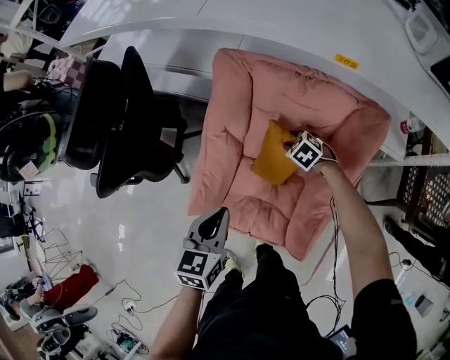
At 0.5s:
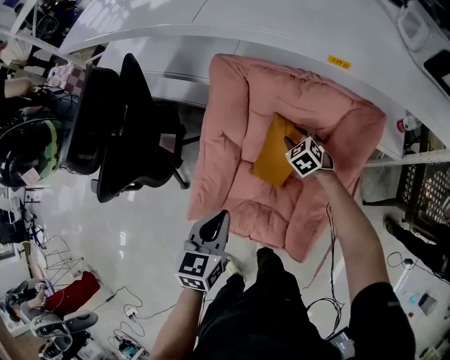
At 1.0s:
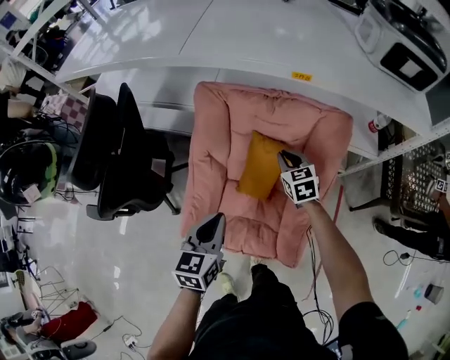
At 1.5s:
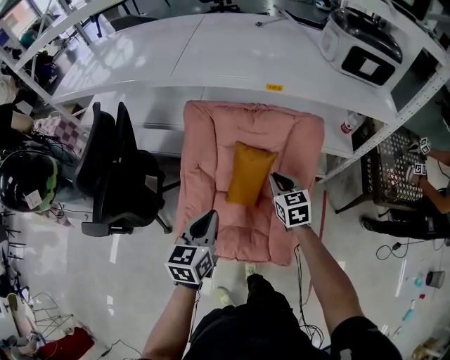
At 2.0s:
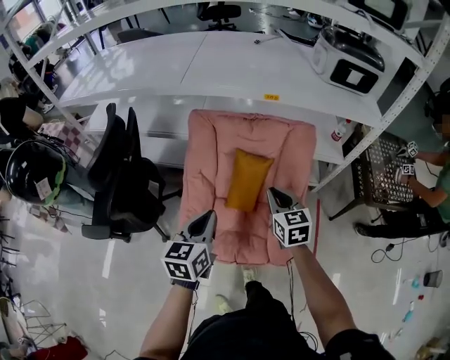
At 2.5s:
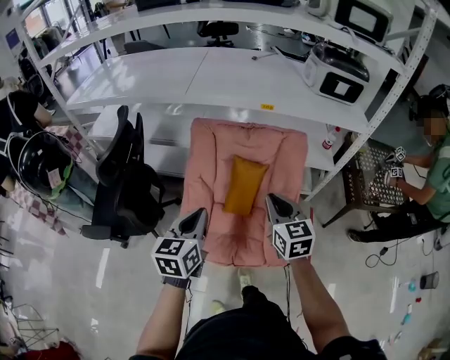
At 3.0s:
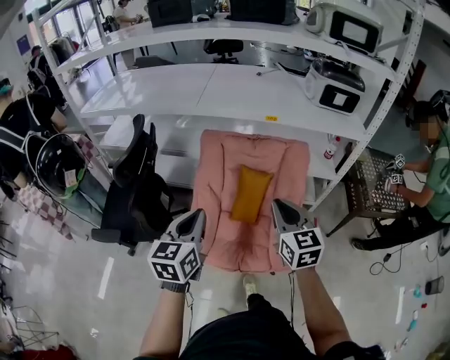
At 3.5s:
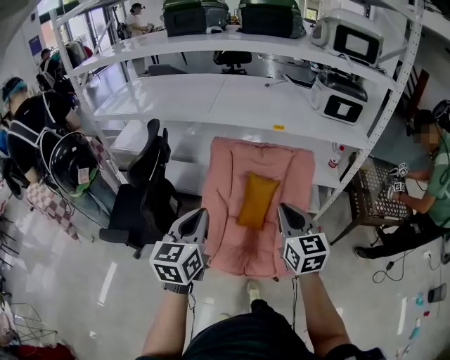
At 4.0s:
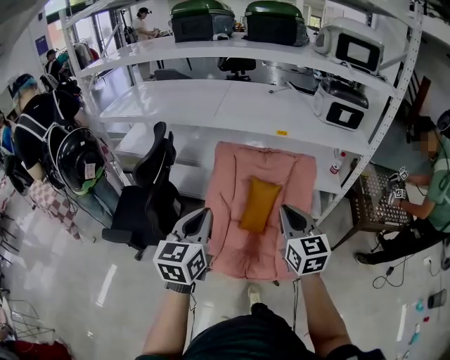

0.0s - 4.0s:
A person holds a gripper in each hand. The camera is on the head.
0.0s - 2.0s: The left gripper goes some 10 cm upward. The right gripper is displaced upward by about 30 cm, tilts its fingers some 40 degrees upward, and closes its fingers.
2.0s - 4.0s: The right gripper moves upward and backward, about 25 cm. The left gripper shifts approximately 25 cm upward, backward and to the left.

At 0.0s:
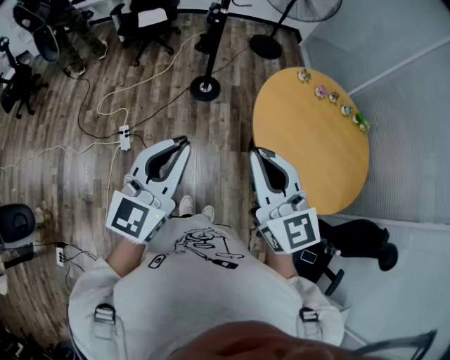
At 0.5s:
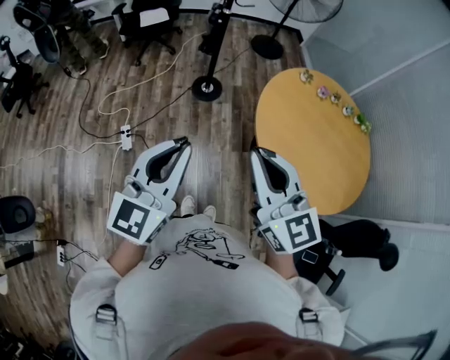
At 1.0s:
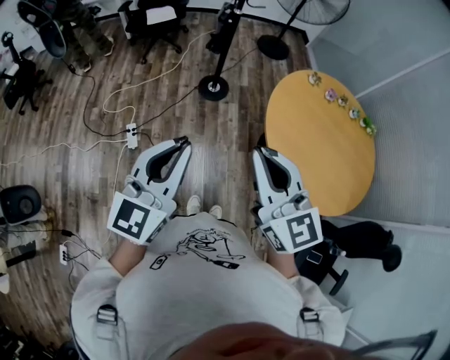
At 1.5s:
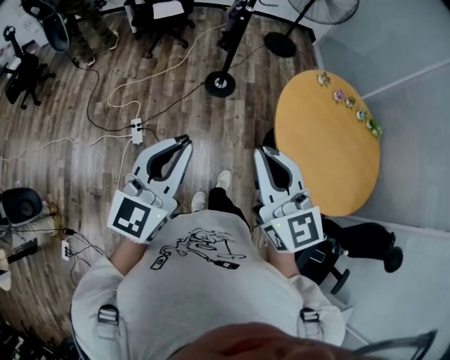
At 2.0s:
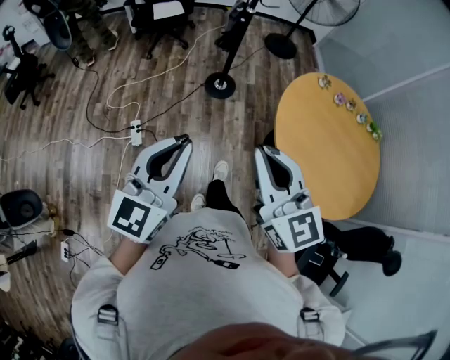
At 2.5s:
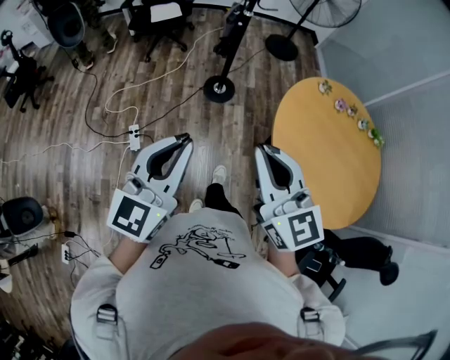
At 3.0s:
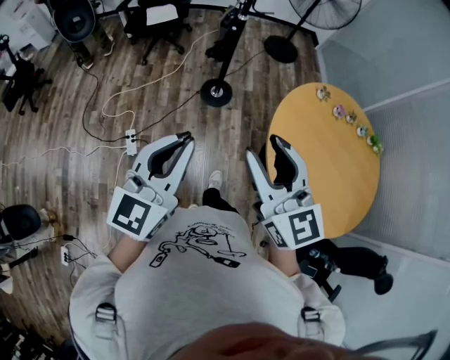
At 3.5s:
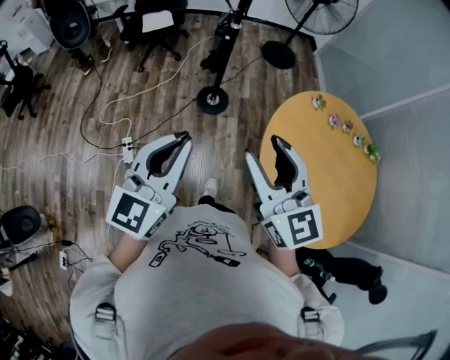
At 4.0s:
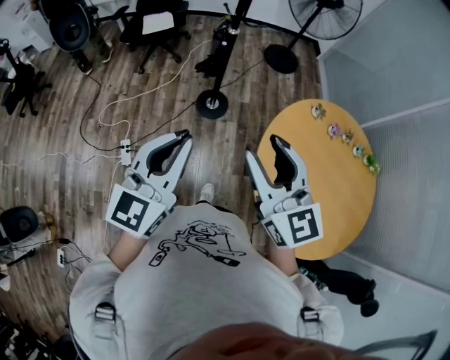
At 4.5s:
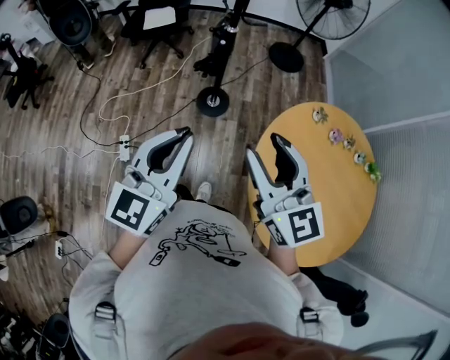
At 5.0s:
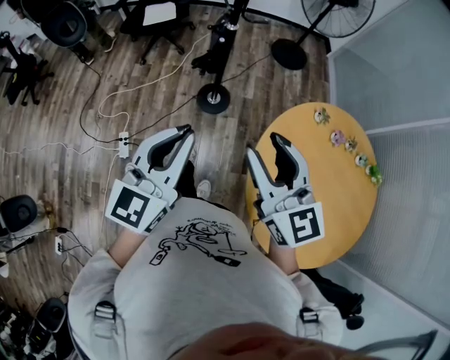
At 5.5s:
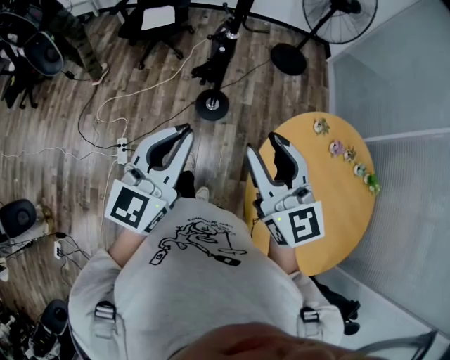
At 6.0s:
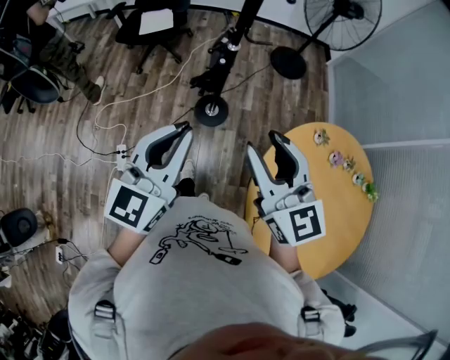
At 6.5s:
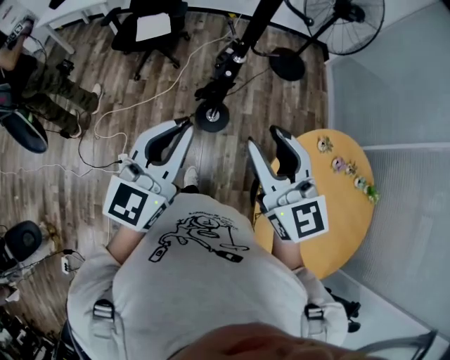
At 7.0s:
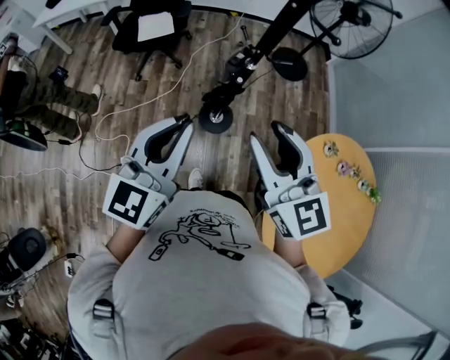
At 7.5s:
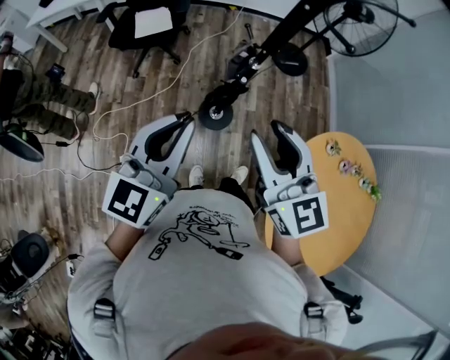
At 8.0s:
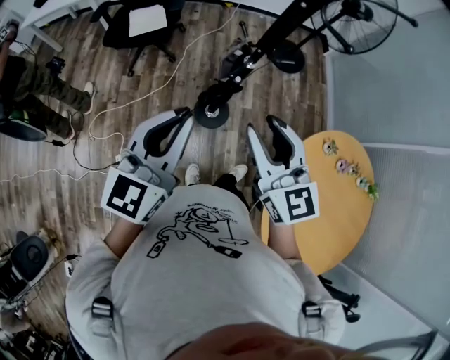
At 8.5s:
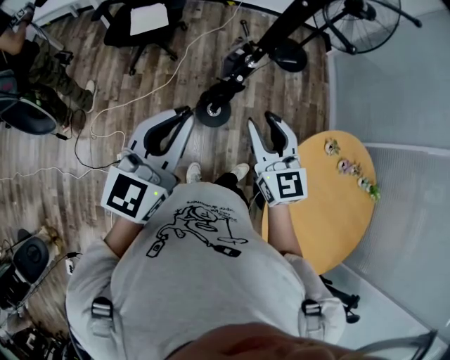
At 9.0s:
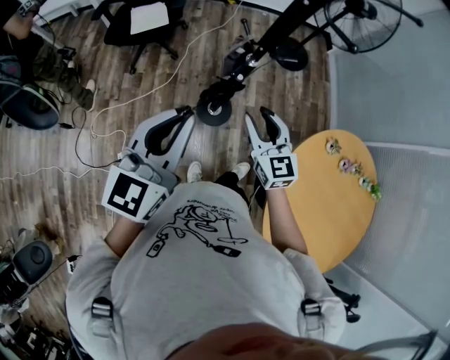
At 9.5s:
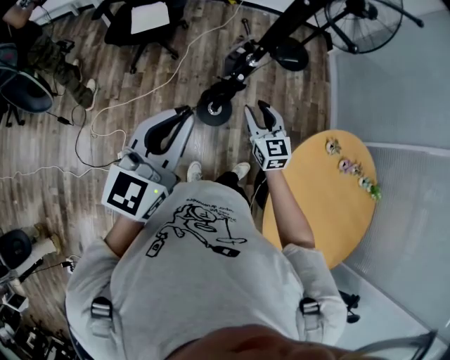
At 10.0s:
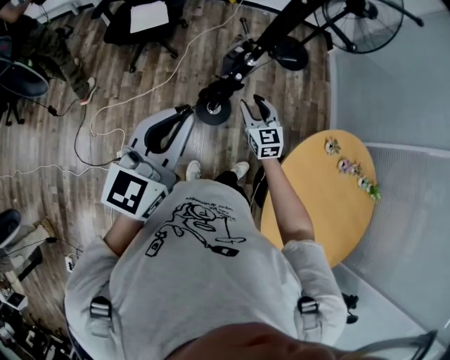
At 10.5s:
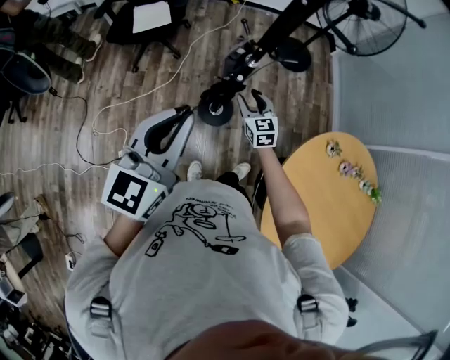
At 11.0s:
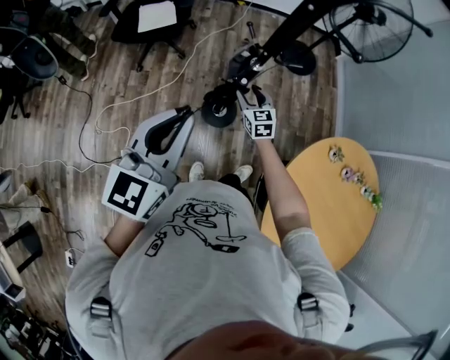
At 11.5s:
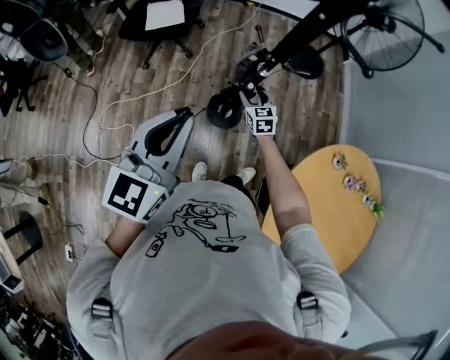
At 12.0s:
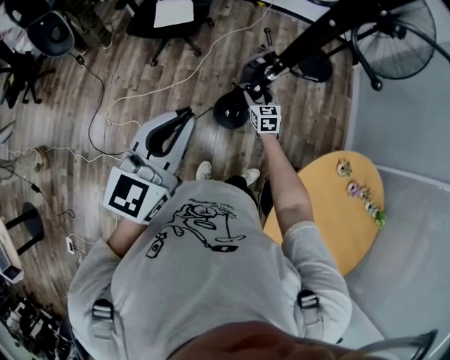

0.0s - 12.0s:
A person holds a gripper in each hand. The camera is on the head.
0.0s - 2.0s: Both grippers travel together to the left, roughly 10 cm.
2.0s - 4.0s: The grippers both shift forward and to the right by some 25 cm. The right gripper opens.
4.0s - 6.0s: Both grippers move forward, about 20 cm.
6.0s - 8.0s: Both grippers move forward and to the left, some 20 cm.
8.0s - 10.0s: The right gripper goes approximately 30 cm downward and forward.
10.0s - 12.0s: The right gripper travels downward and forward by roughly 15 cm.

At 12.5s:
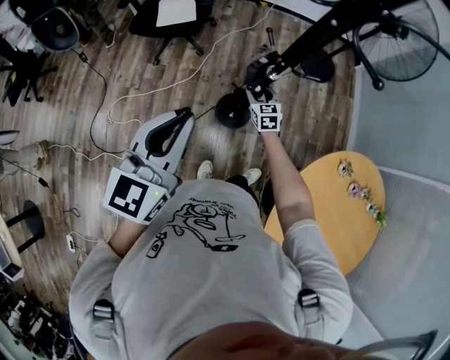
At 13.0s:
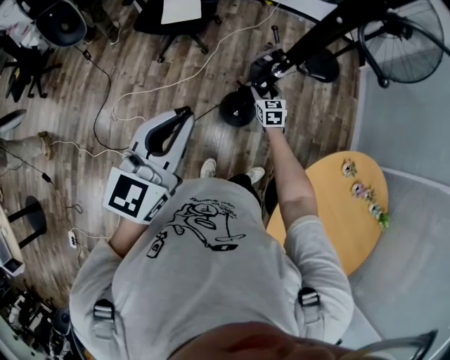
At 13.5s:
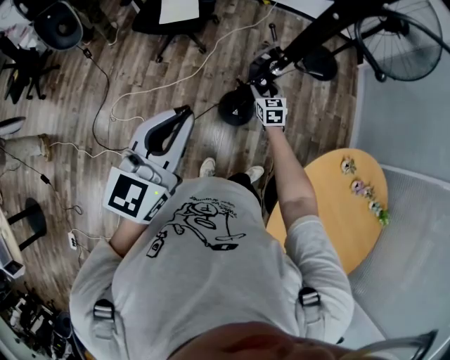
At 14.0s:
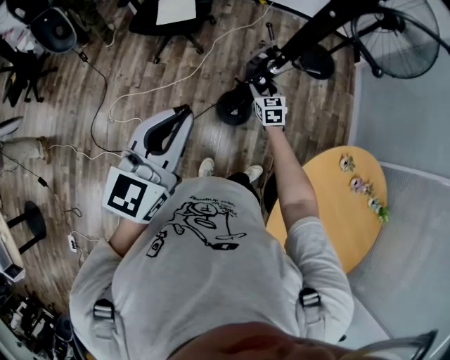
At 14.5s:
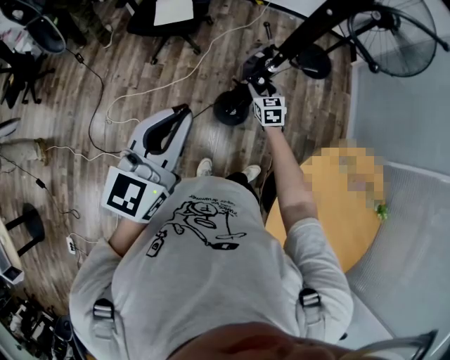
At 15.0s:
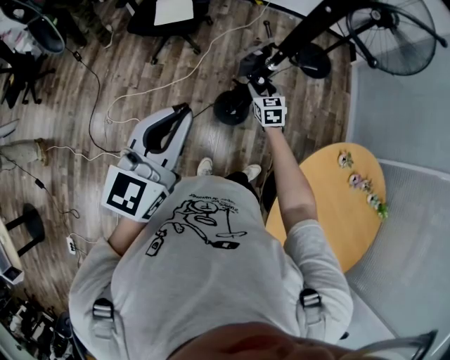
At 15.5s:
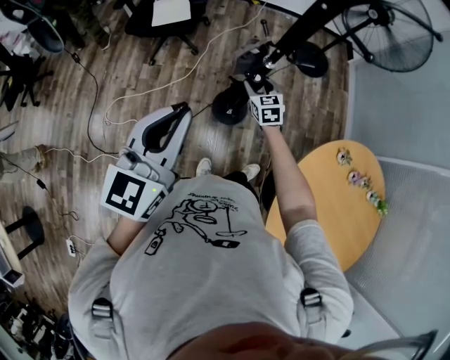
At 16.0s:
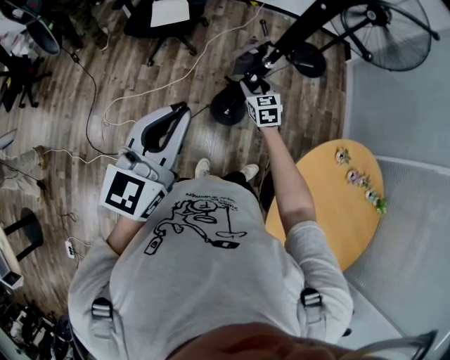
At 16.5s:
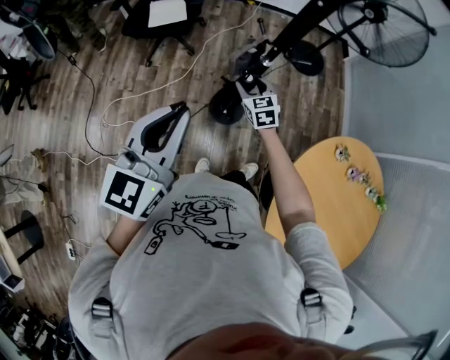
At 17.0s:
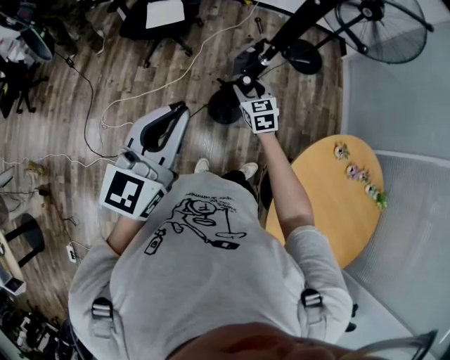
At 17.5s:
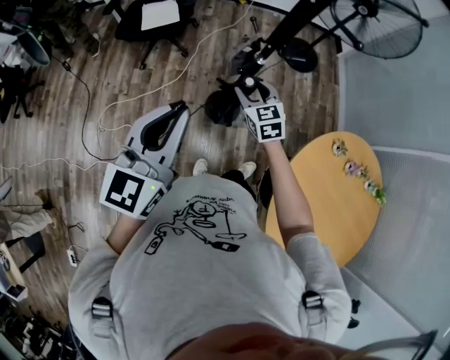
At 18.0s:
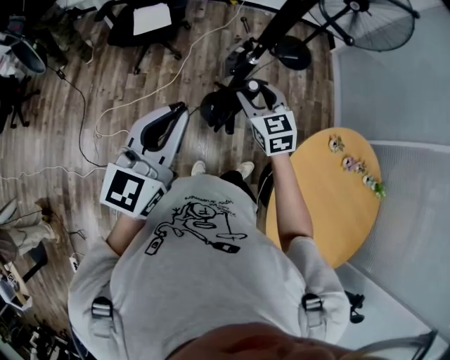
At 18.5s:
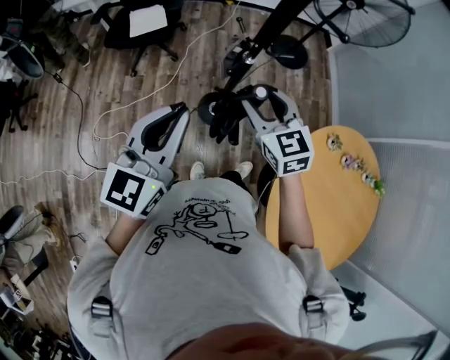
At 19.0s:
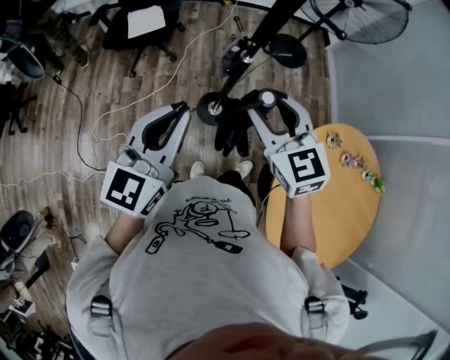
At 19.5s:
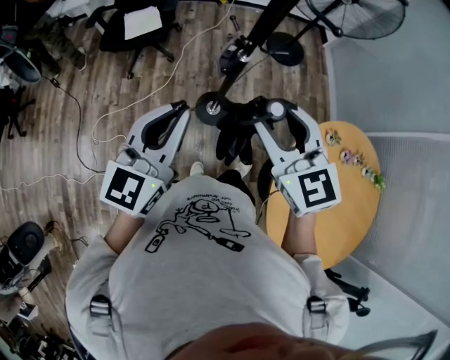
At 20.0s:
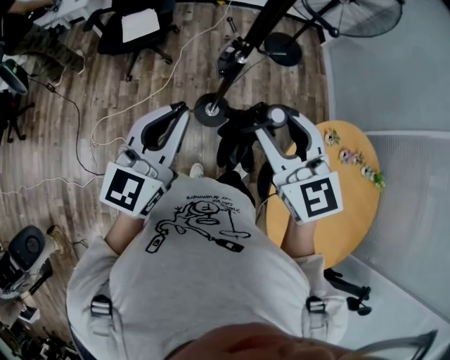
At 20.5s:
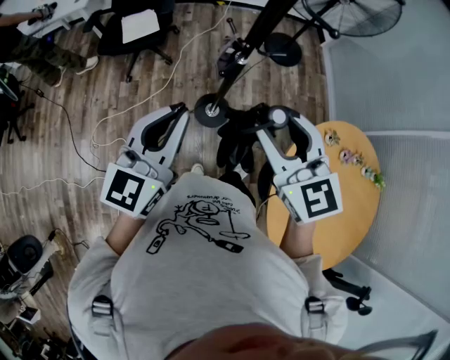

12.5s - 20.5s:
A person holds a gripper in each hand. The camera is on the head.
12.5s - 14.5s: There are only small adjustments of the grippers.
14.5s - 16.5s: The right gripper goes about 5 cm upward.
16.5s - 18.5s: The right gripper is displaced upward and backward by some 25 cm.
18.5s - 20.5s: The right gripper heads upward and backward, covering some 15 cm.

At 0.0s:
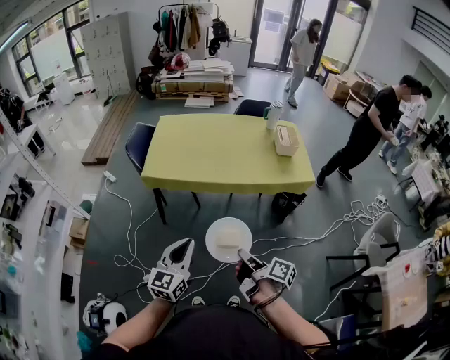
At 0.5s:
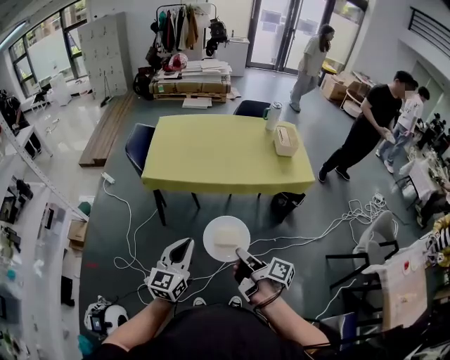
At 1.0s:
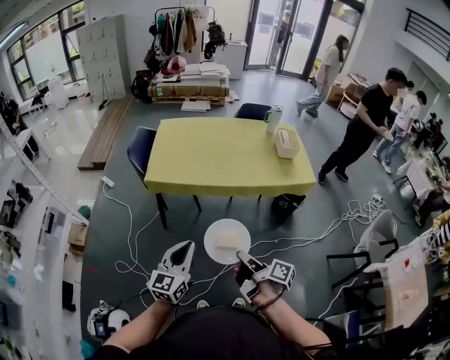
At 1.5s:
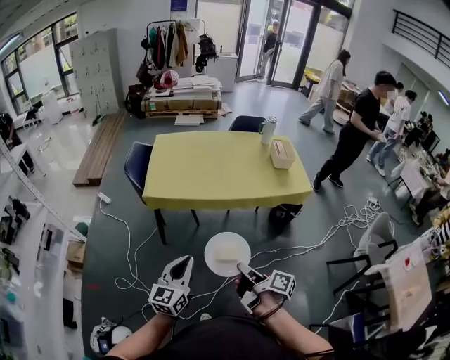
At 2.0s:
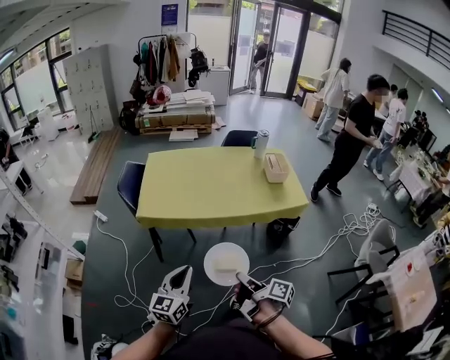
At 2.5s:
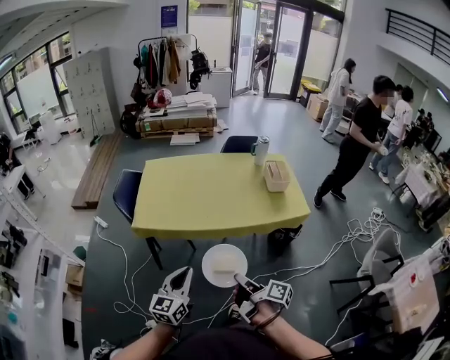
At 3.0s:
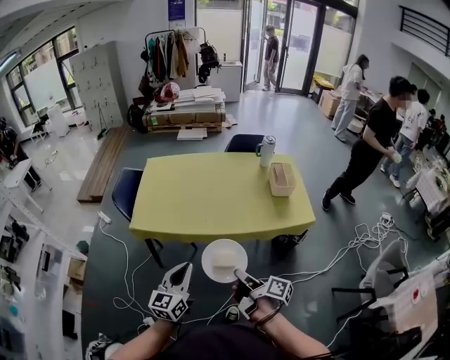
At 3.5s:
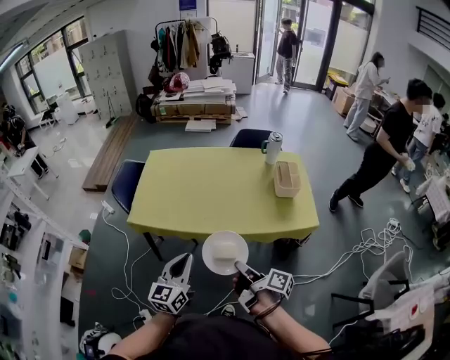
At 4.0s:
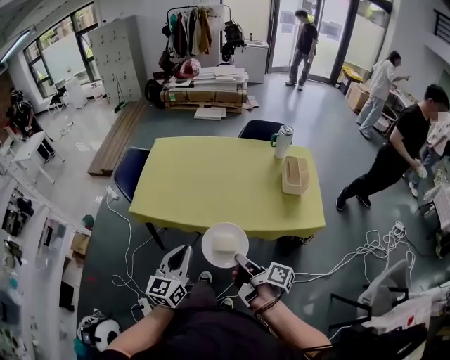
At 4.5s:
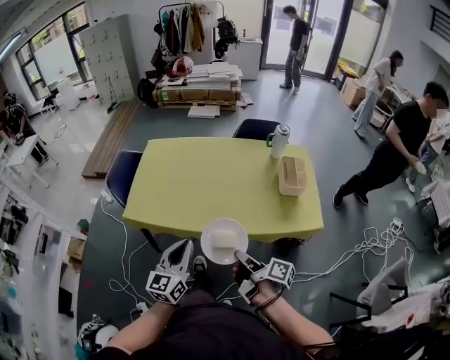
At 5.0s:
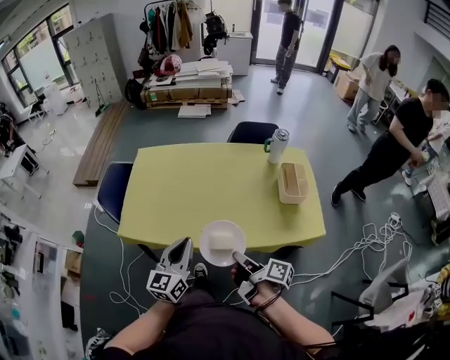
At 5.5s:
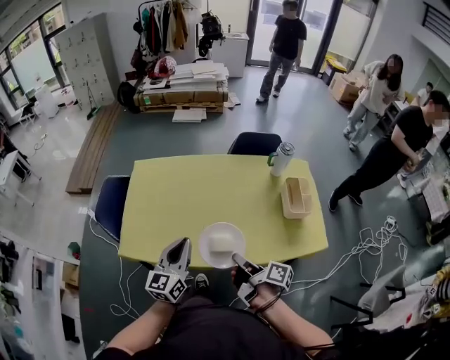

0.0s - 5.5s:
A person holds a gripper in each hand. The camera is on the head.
0.0s - 2.0s: The right gripper moves roughly 5 cm; the left gripper goes approximately 5 cm forward.
2.0s - 3.5s: Both grippers travel together forward and to the right, roughly 25 cm.
3.5s - 5.5s: The two grippers go roughly 30 cm forward.
